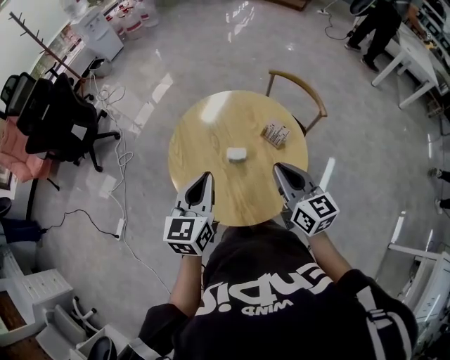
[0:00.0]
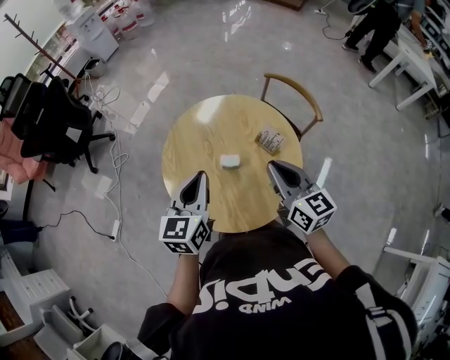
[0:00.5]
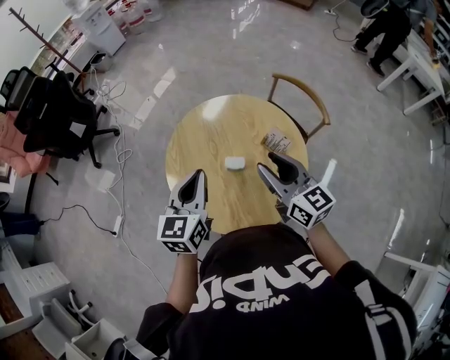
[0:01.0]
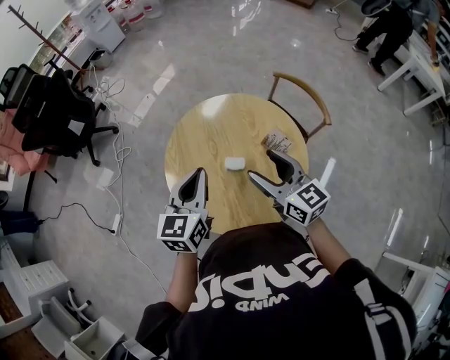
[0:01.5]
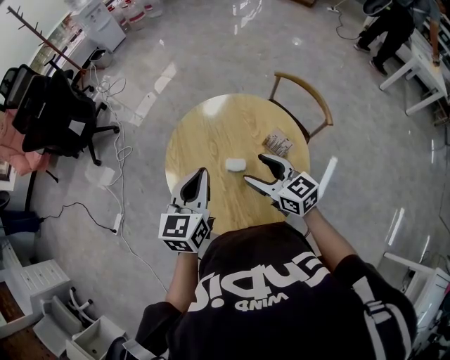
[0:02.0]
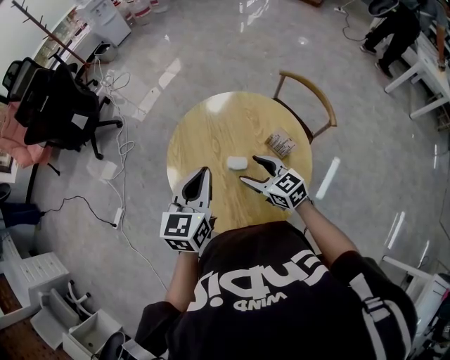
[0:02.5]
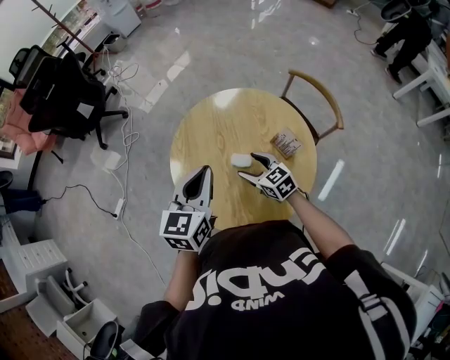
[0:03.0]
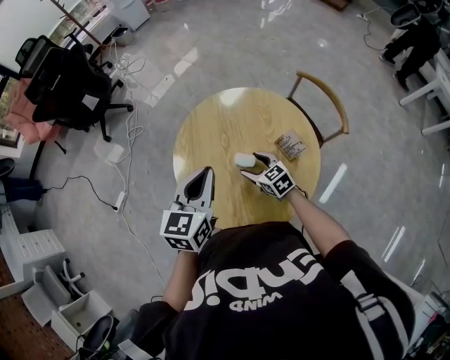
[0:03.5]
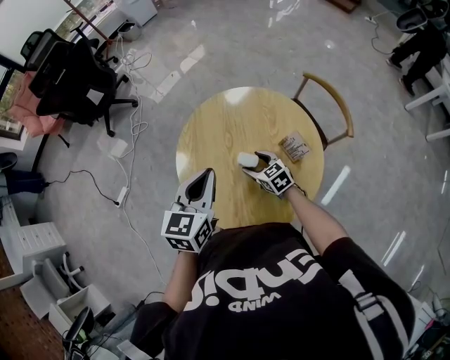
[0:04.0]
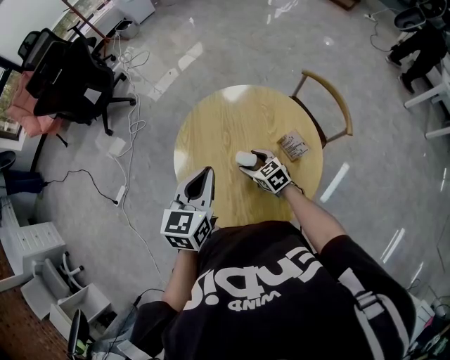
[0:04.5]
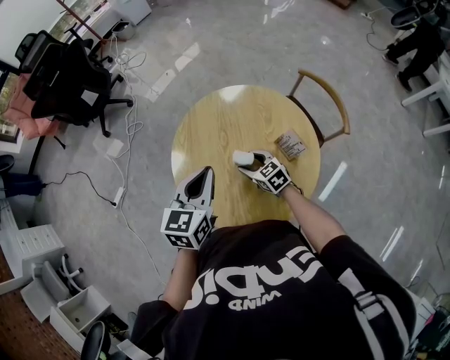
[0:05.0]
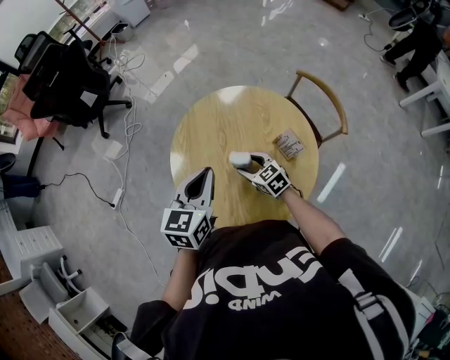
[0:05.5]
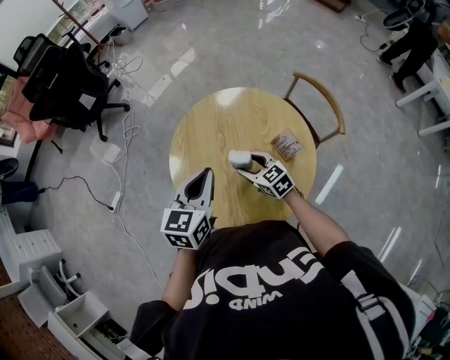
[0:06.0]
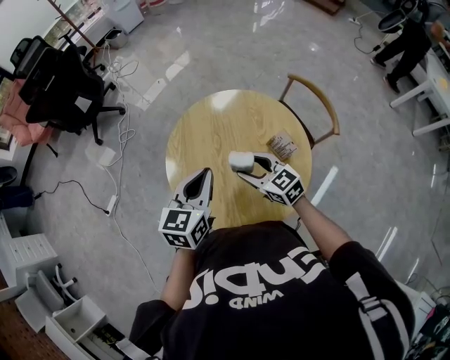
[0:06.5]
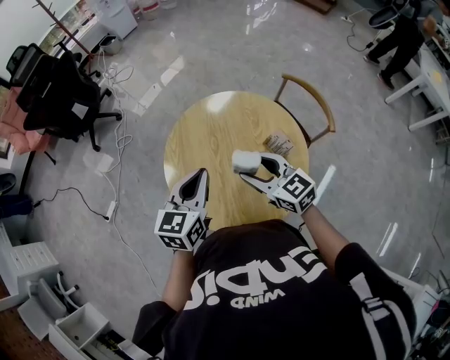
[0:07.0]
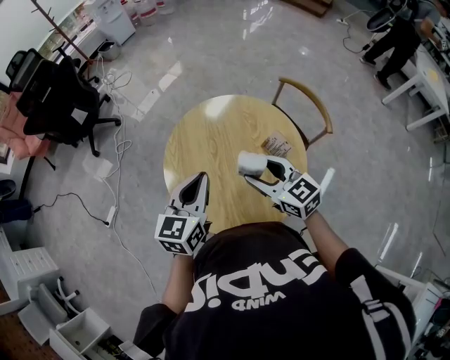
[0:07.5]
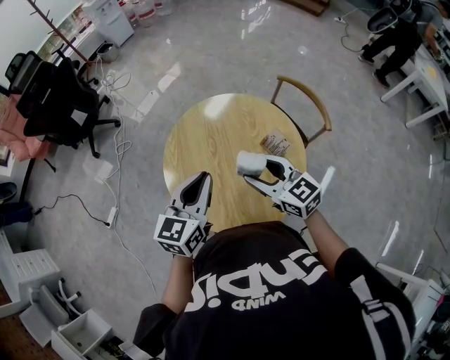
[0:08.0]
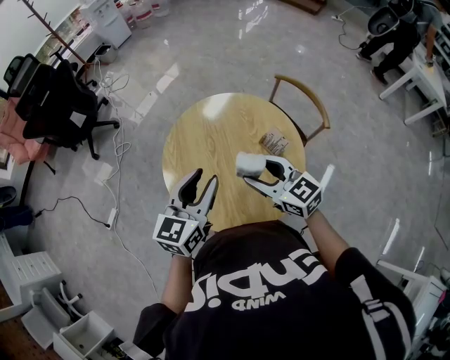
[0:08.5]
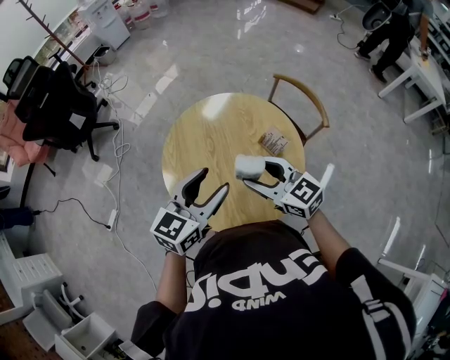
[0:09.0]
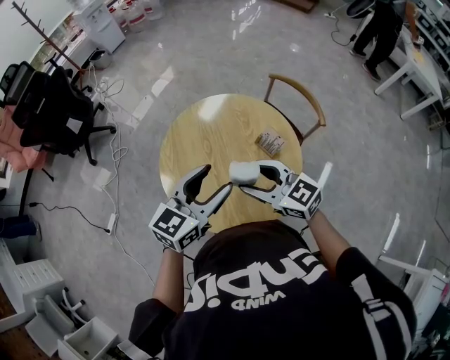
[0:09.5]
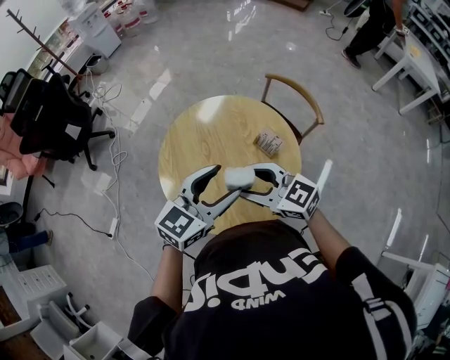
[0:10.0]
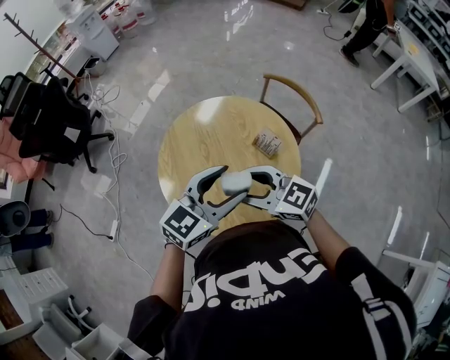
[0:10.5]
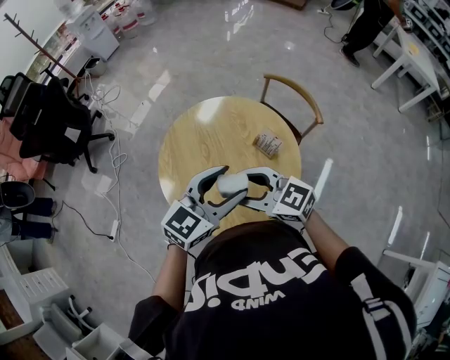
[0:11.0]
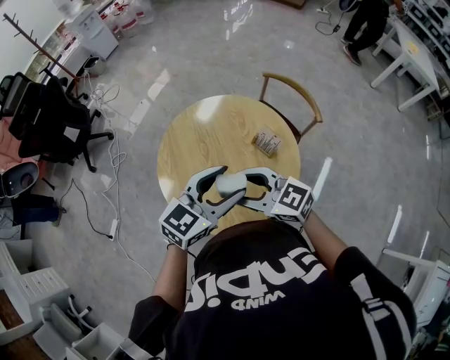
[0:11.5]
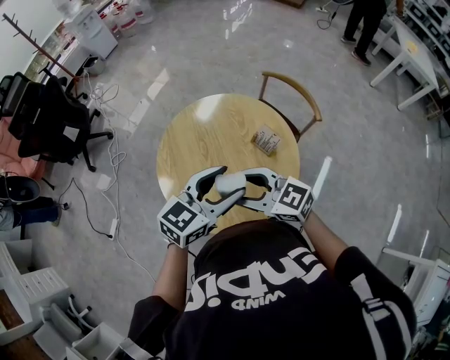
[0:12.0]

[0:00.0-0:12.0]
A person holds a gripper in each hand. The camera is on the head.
0:00.0 to 0:02.0: The left gripper travels forward by roughly 5 cm. The right gripper goes roughly 10 cm downward and forward, swivels about 30 degrees, and opens its fingers.
0:02.0 to 0:04.0: The right gripper is displaced downward by approximately 20 cm, and turns by roughly 30 degrees.
0:04.0 to 0:06.0: The right gripper moves upward, roughly 5 cm.
0:06.0 to 0:08.0: The right gripper heads upward, covering roughly 15 cm.
0:08.0 to 0:10.0: The left gripper is displaced to the right by some 5 cm, swivels approximately 30 degrees, and opens its fingers.
0:10.0 to 0:12.0: The grippers make only small movements.

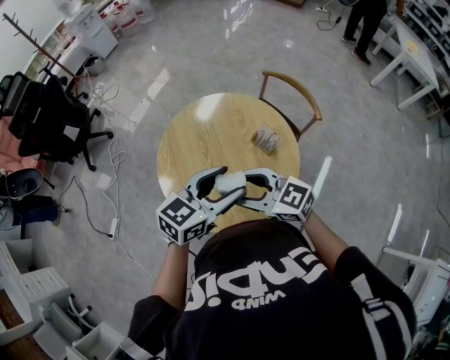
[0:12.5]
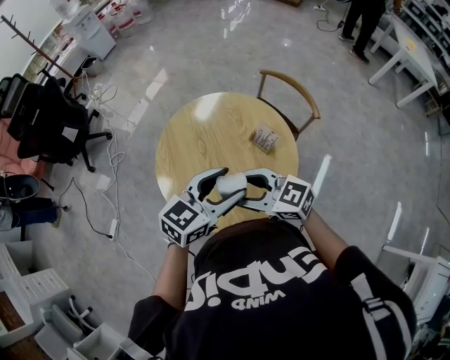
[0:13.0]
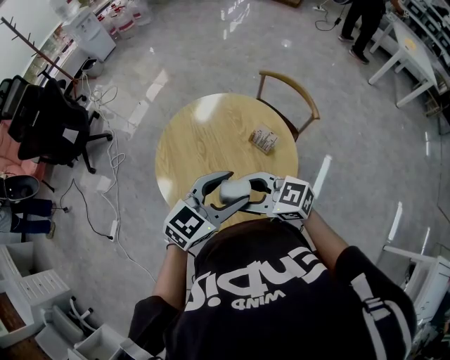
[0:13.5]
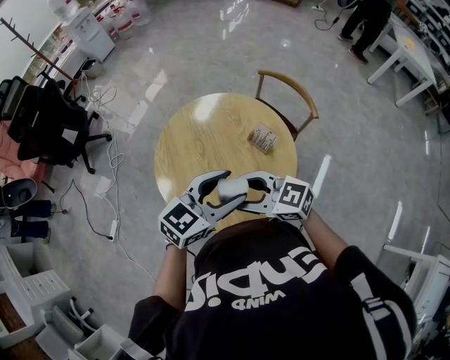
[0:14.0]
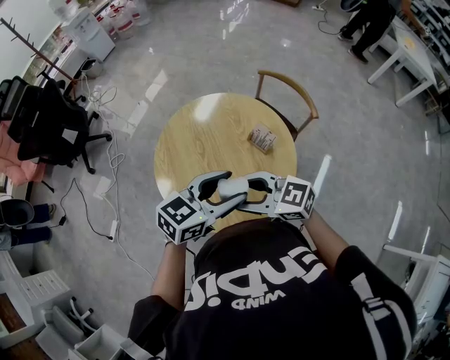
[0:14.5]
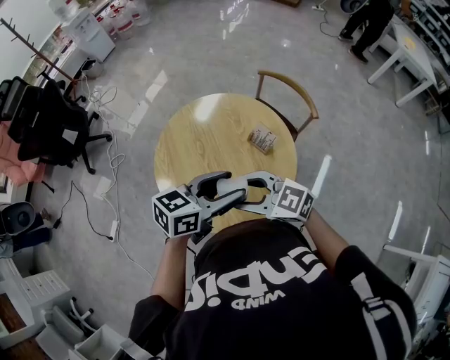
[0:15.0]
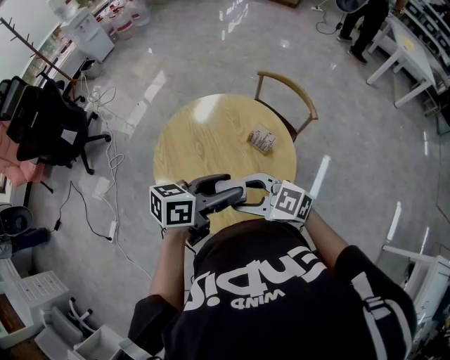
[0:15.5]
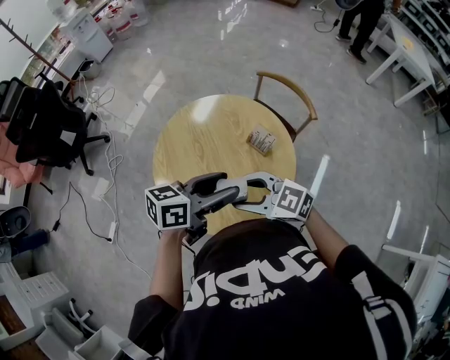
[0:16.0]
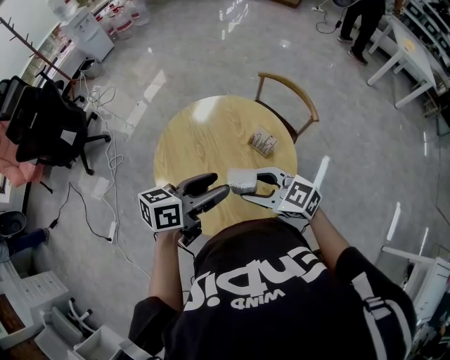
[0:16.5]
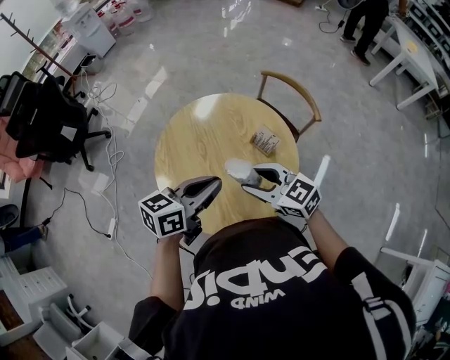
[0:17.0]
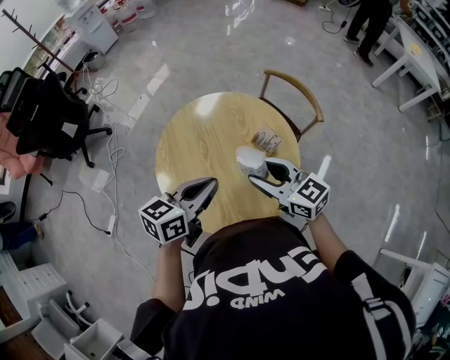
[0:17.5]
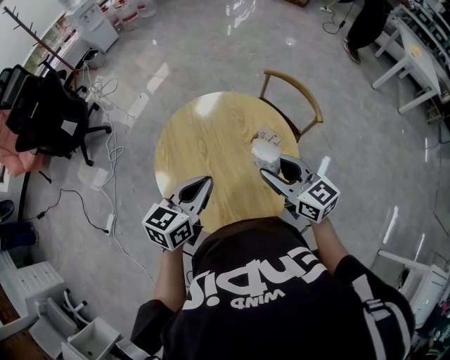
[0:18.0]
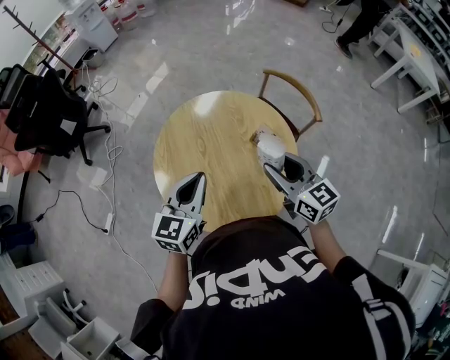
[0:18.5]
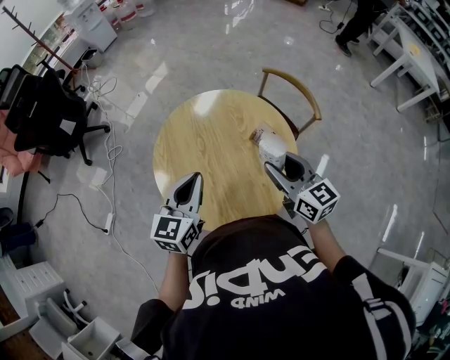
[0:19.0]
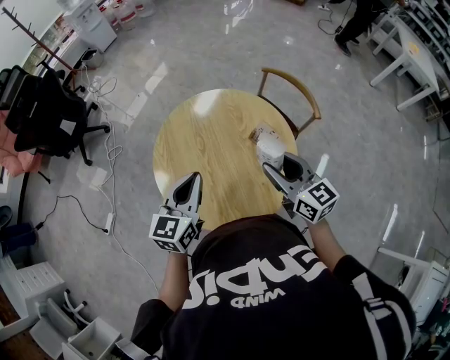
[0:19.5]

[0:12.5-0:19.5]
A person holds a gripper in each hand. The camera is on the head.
0:12.5 to 0:14.5: The grippers stay close to where they were, moving slightly.
0:14.5 to 0:16.0: The left gripper changes its angle by approximately 30 degrees.
0:16.0 to 0:17.5: The left gripper ends up about 5 cm from where it was, and closes its fingers. Meanwhile the right gripper shifts by about 10 cm, and turns by approximately 30 degrees.
0:17.5 to 0:19.5: The right gripper heads to the right, covering about 5 cm, while the left gripper changes its angle by some 30 degrees.

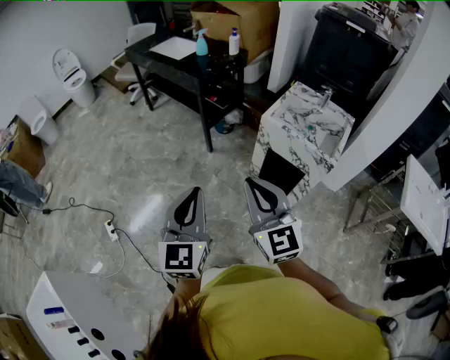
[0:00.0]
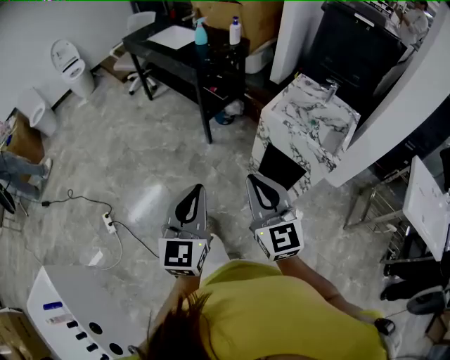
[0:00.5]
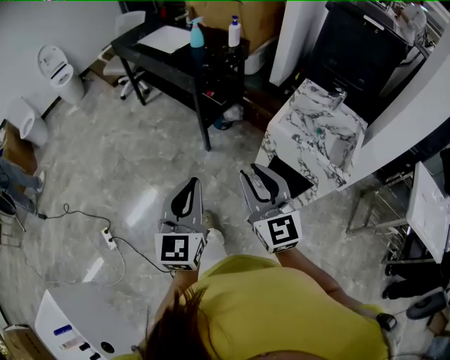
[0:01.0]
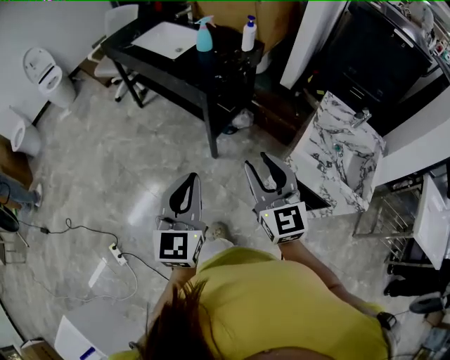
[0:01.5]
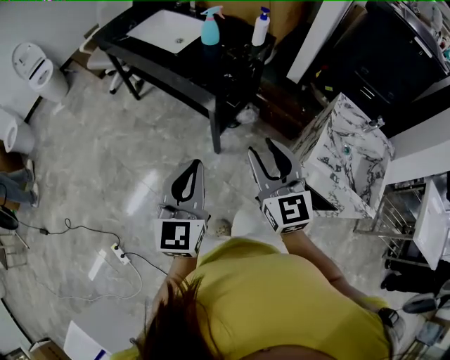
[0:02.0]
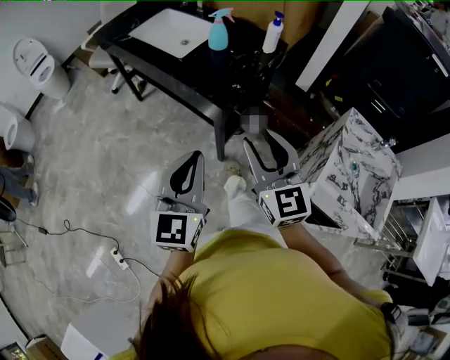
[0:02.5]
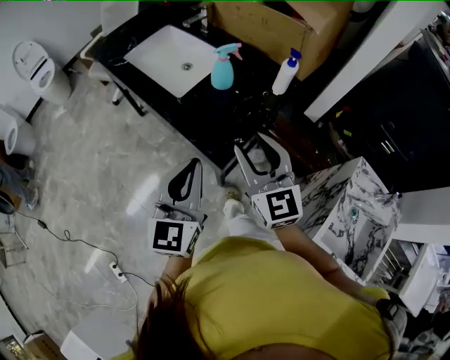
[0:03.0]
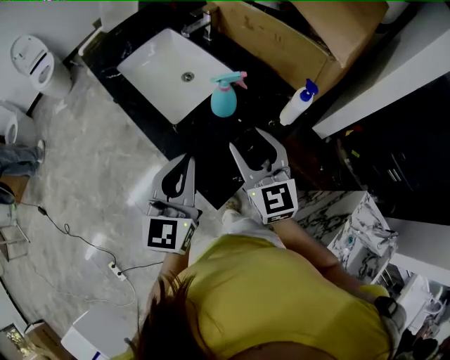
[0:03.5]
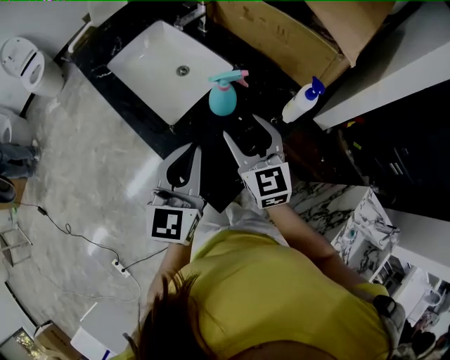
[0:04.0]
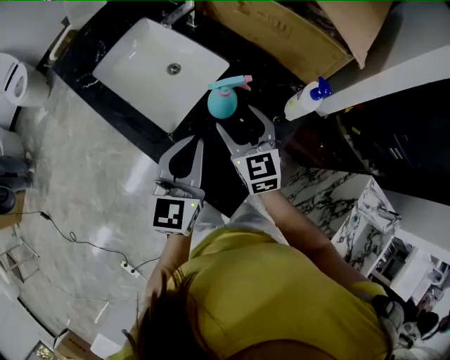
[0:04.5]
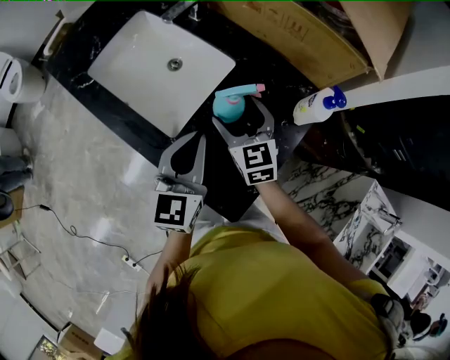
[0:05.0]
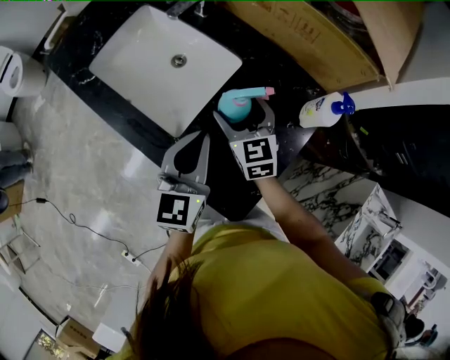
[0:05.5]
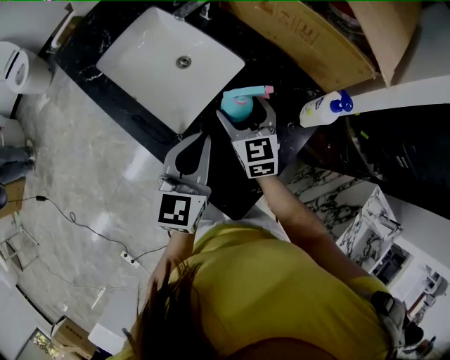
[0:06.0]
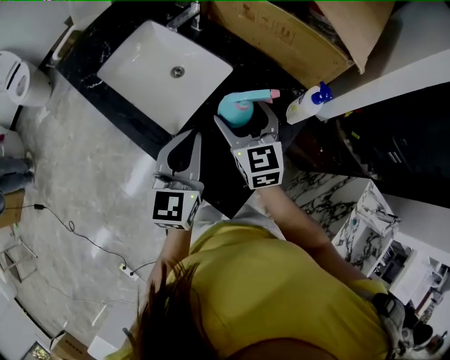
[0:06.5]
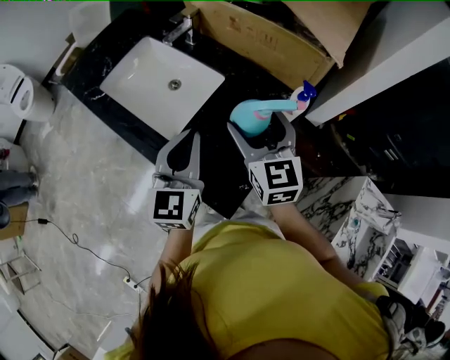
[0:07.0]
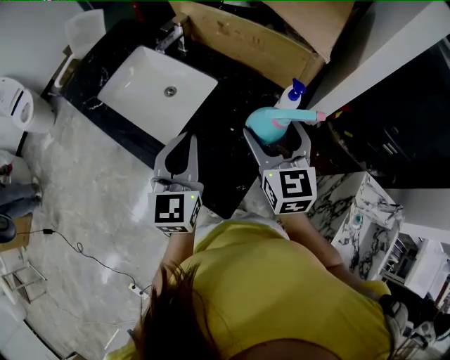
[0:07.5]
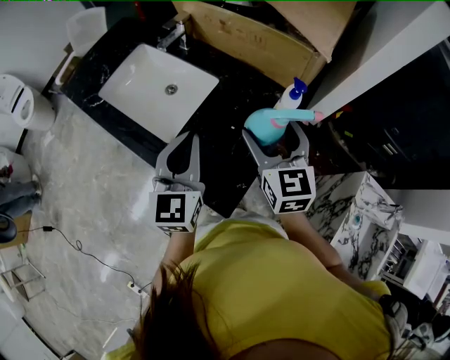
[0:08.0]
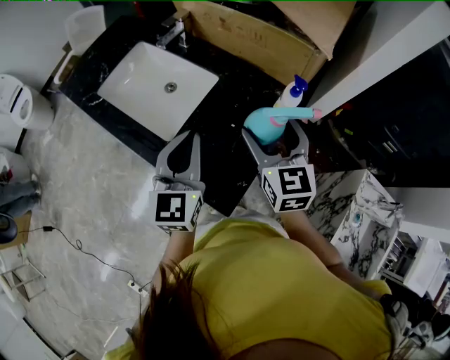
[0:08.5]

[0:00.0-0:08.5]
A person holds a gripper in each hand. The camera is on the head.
0:00.0 to 0:02.0: Both grippers are carried forward, about 50 cm. The right gripper opens its fingers.
0:02.0 to 0:04.0: The pair of grippers is taken forward, some 50 cm.
0:04.0 to 0:06.5: Both grippers travel together forward, about 5 cm.
0:06.5 to 0:08.5: The left gripper shifts by some 5 cm. Meanwhile the right gripper travels to the right, upward and backward by about 15 cm.
